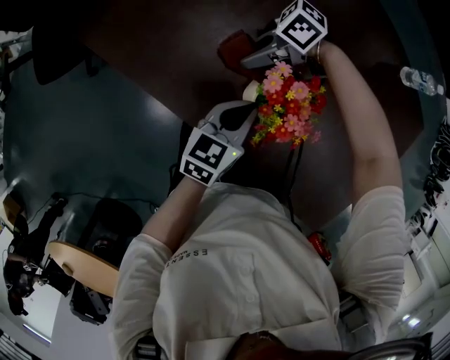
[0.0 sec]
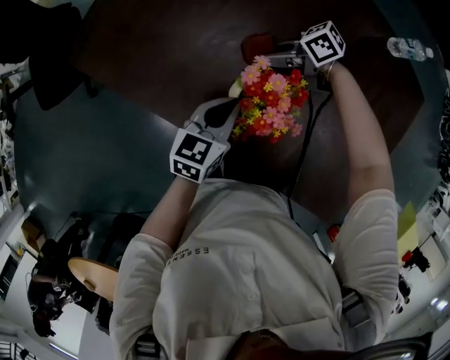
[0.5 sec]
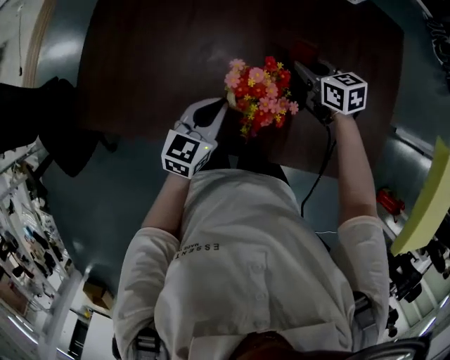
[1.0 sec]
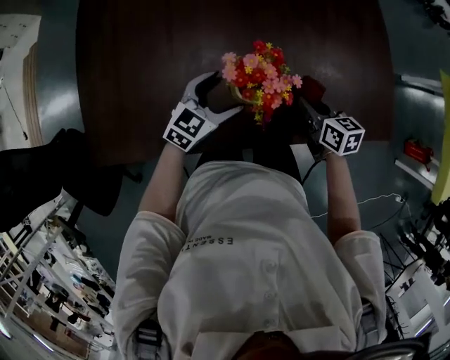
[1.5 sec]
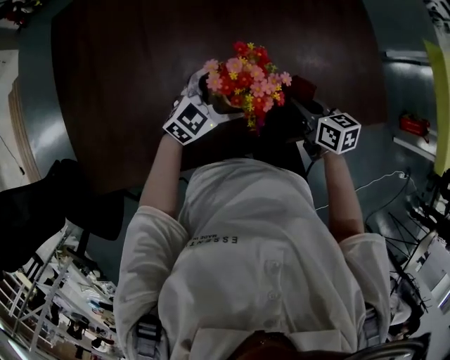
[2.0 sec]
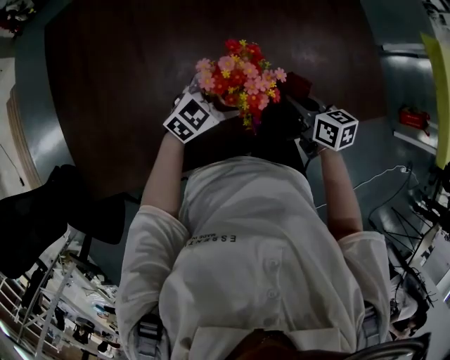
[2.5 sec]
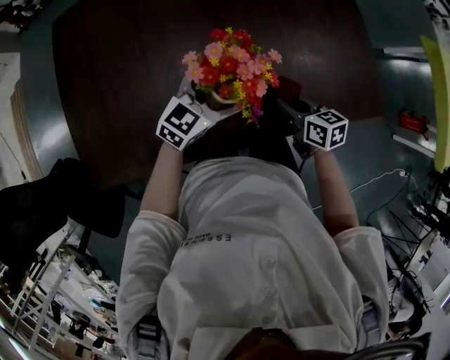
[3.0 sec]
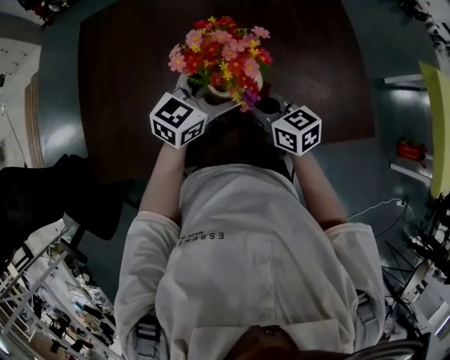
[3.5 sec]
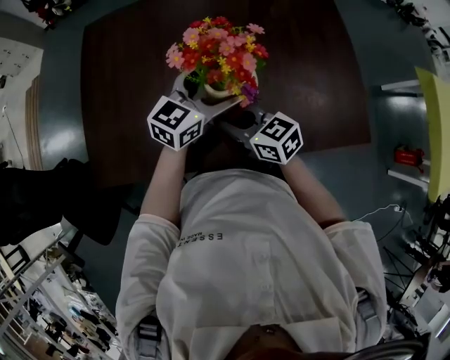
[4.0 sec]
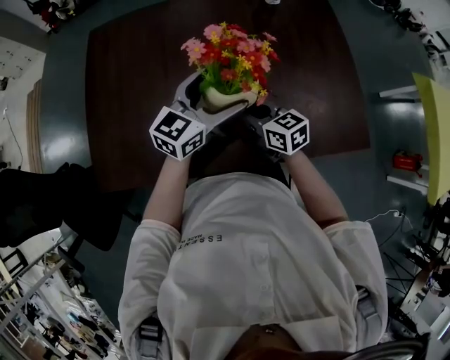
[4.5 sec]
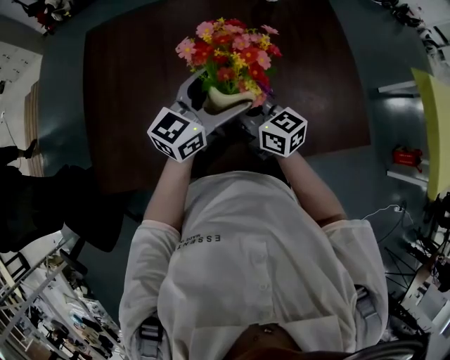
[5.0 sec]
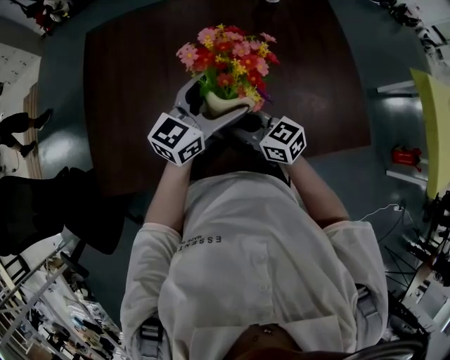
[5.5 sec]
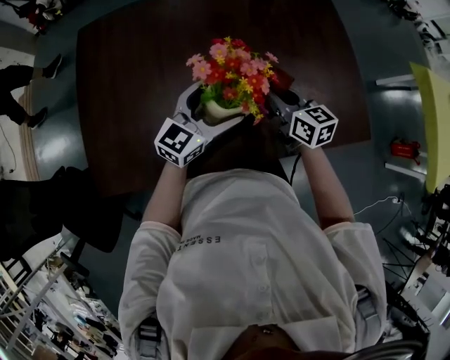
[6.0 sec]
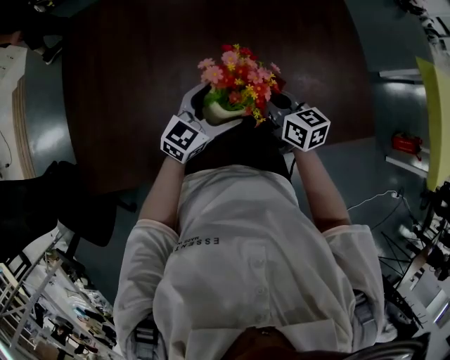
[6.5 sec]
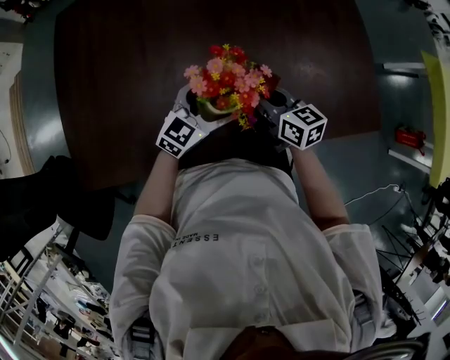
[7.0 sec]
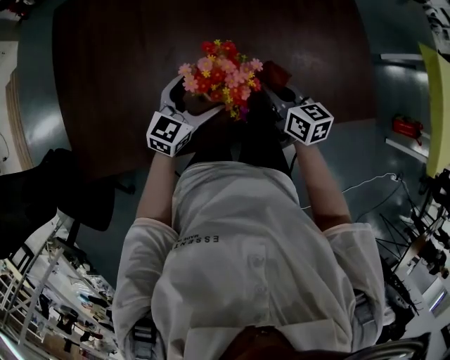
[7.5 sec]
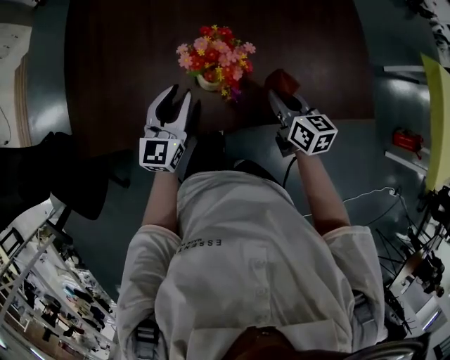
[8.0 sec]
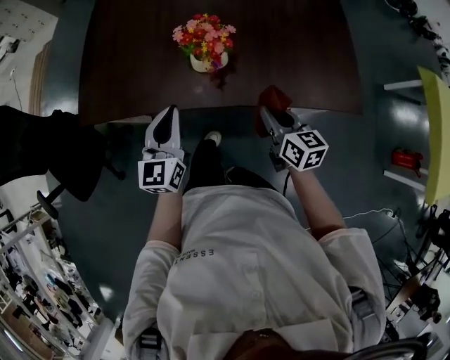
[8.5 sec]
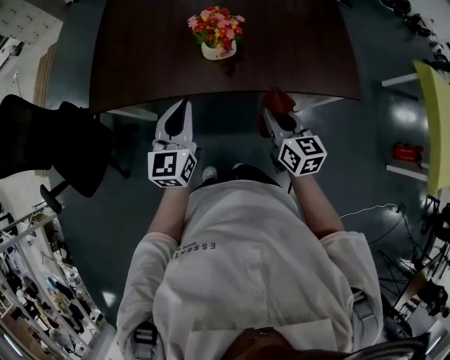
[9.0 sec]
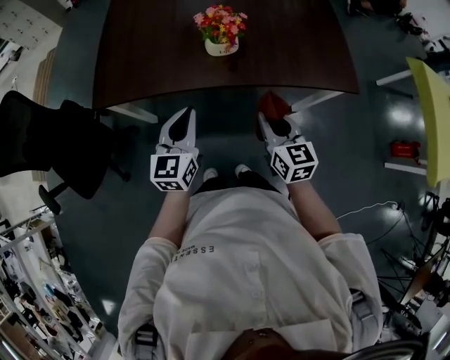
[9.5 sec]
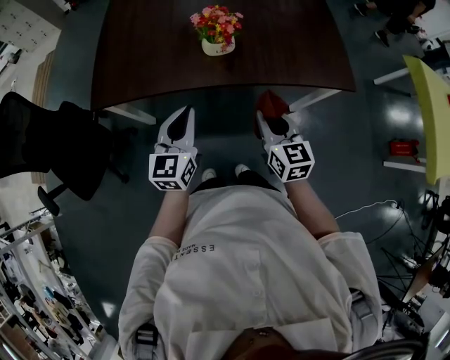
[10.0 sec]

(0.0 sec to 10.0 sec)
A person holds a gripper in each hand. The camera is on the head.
0.0 sec - 2.0 sec: The right gripper changes place by about 25 cm, and rotates roughly 120 degrees; the left gripper changes place by approximately 5 cm, rotates approximately 80 degrees, and opens up.
2.0 sec - 4.0 sec: The left gripper is displaced upward by some 20 cm, and rotates some 30 degrees. Meanwhile the right gripper ends up some 20 cm from where it was, and swivels about 40 degrees.
4.0 sec - 6.0 sec: The left gripper shifts by roughly 5 cm, while the right gripper swings left and right, roughly 10 cm each way, with 2 reversals, and rotates roughly 30 degrees.
6.0 sec - 8.0 sec: The right gripper heads backward, to the right and downward, covering about 15 cm. Meanwhile the left gripper moves backward, to the left and downward, some 10 cm, changes its angle by roughly 30 degrees, and closes.
8.0 sec - 10.0 sec: Both grippers travel together backward, roughly 25 cm. The right gripper rotates roughly 20 degrees.

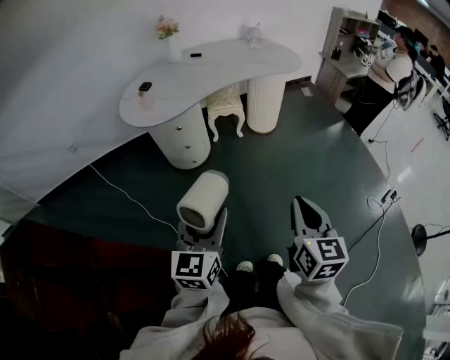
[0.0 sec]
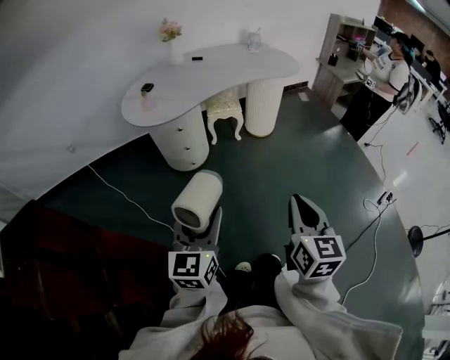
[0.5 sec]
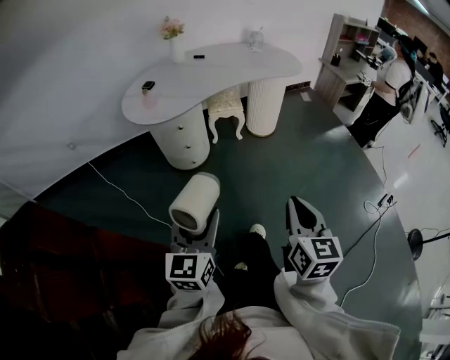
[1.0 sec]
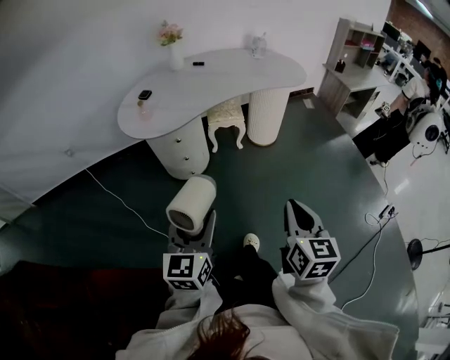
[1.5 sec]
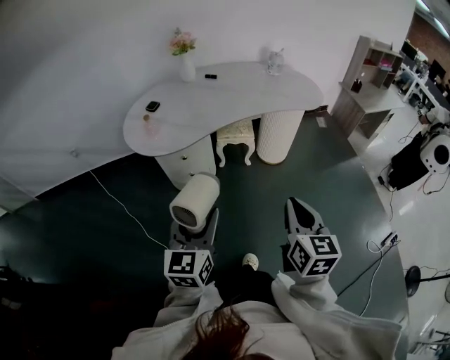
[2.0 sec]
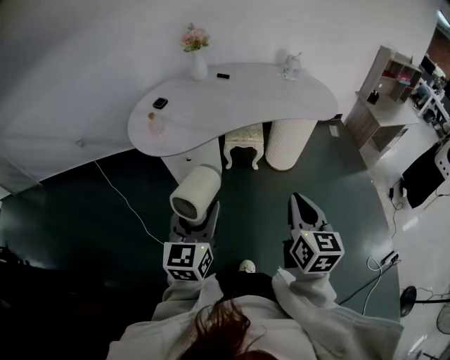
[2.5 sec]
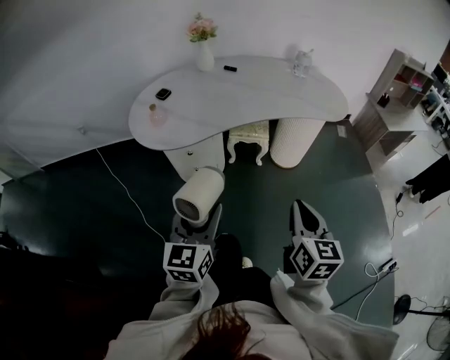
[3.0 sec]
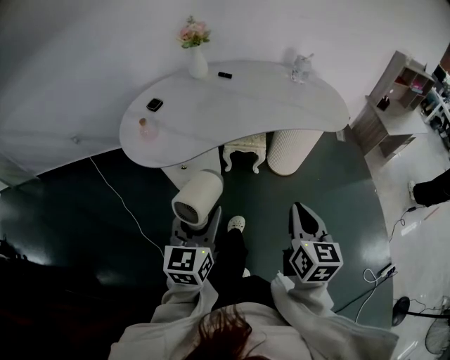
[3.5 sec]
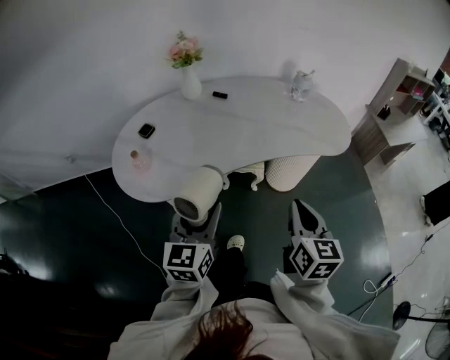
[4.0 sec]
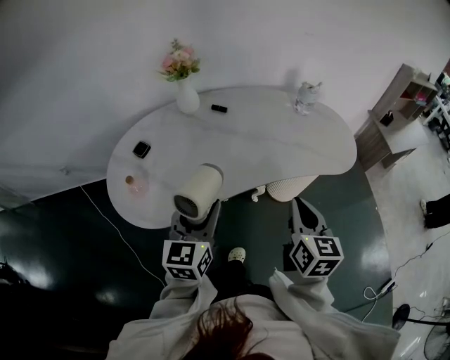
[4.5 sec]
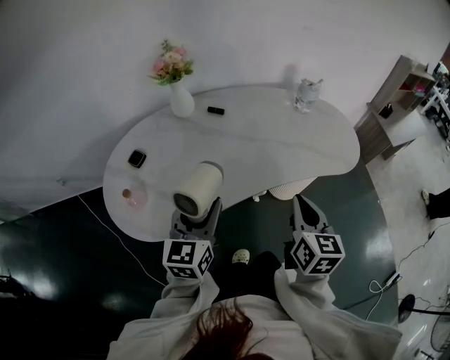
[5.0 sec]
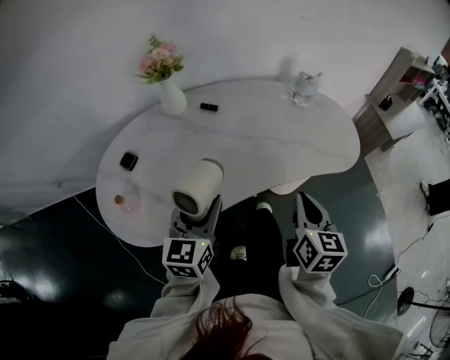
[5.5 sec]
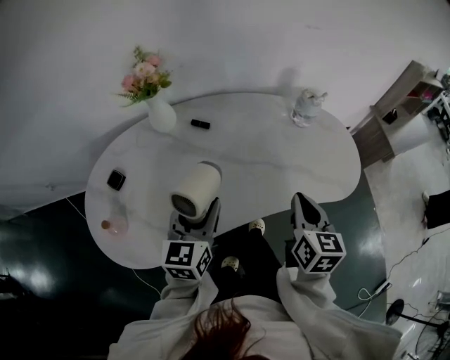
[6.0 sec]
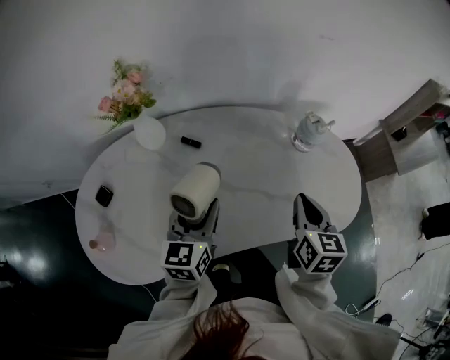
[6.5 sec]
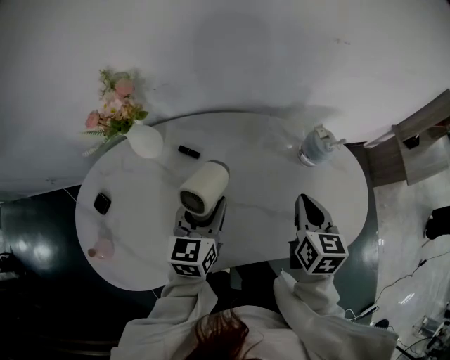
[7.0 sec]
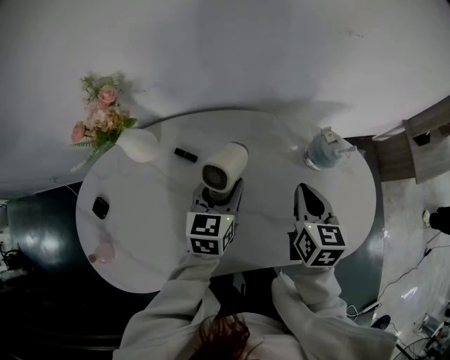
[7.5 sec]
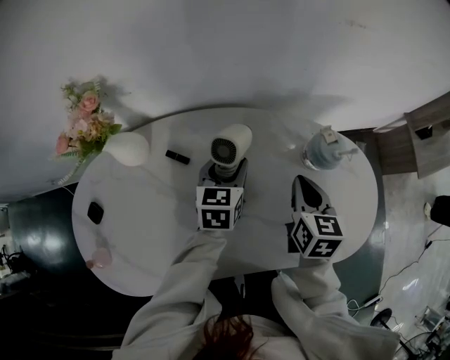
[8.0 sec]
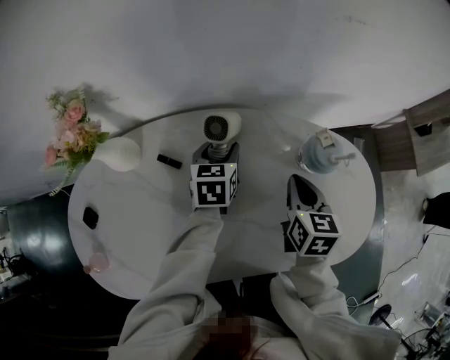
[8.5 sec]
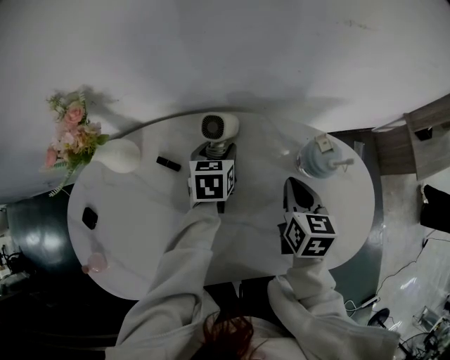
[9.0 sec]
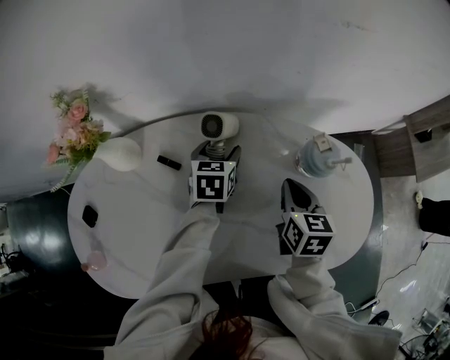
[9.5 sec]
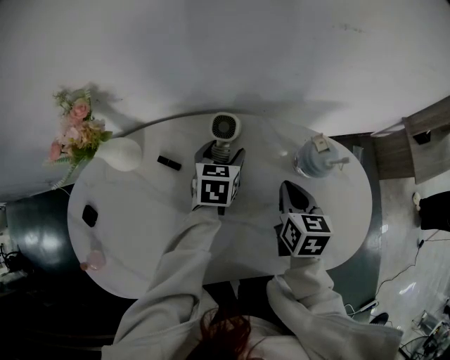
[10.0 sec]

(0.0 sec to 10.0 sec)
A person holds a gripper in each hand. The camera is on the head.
0.0 sec - 2.0 sec: Both grippers travel together forward, some 20 cm.
2.0 sec - 4.0 sec: Both grippers travel together forward, roughly 30 cm.
4.0 sec - 6.0 sec: The two grippers go approximately 25 cm forward.
6.0 sec - 8.0 sec: The two grippers go approximately 30 cm forward.
8.0 sec - 10.0 sec: The left gripper travels forward by approximately 5 cm.

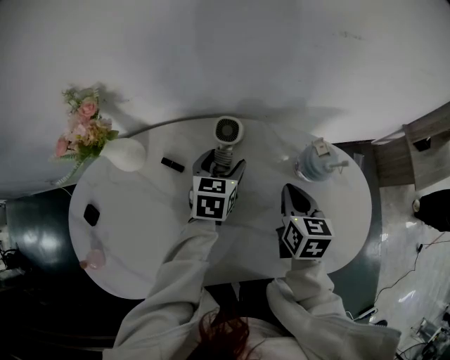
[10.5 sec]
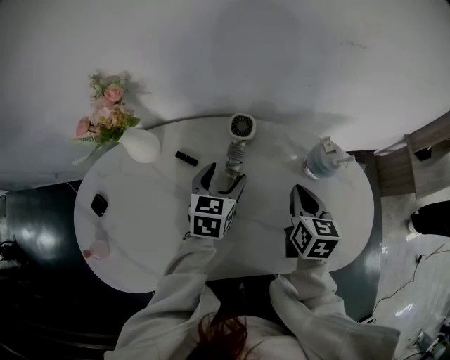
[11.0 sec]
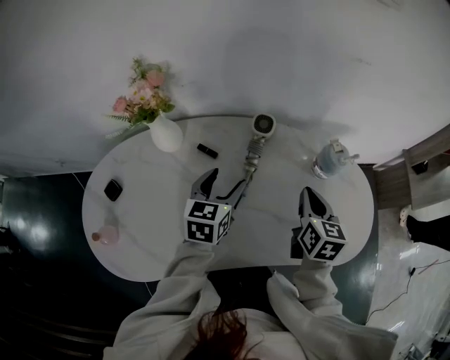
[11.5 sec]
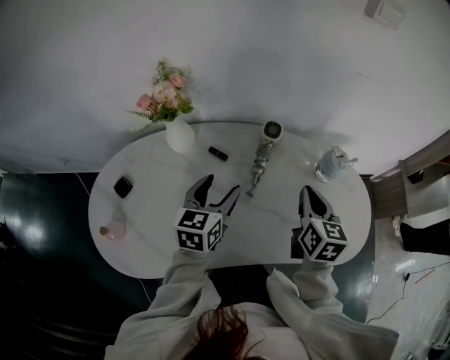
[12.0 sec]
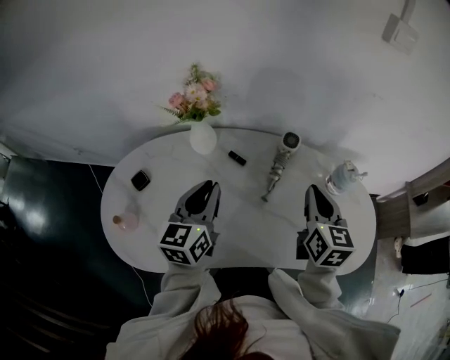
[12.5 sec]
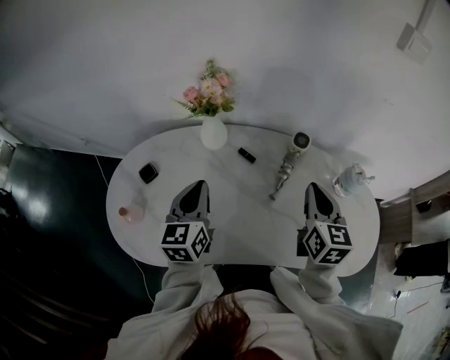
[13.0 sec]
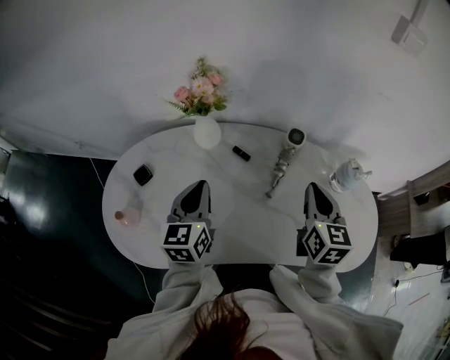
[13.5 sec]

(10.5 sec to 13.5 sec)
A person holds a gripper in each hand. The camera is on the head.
10.5 sec - 12.0 sec: The left gripper travels backward, upward and to the left by roughly 25 cm. Meanwhile the right gripper shifts roughly 15 cm upward, backward and to the left.
12.0 sec - 13.5 sec: The left gripper heads to the left, covering roughly 10 cm, rotates some 20 degrees, and closes. The right gripper goes about 5 cm to the left.

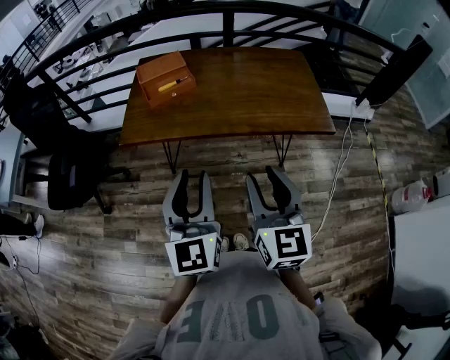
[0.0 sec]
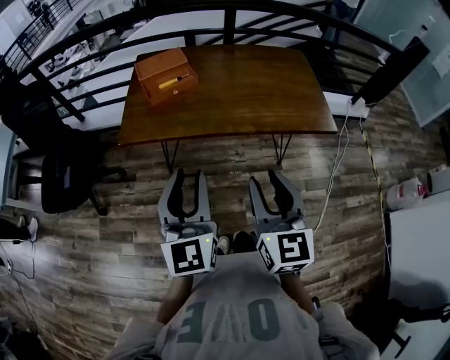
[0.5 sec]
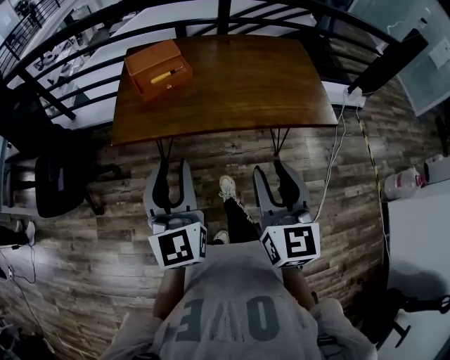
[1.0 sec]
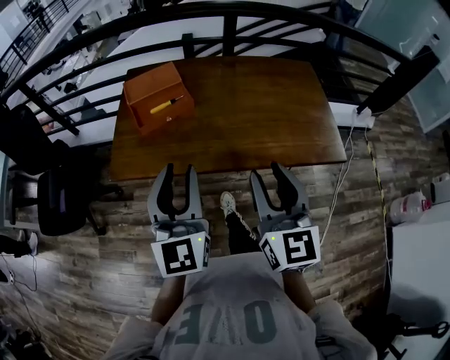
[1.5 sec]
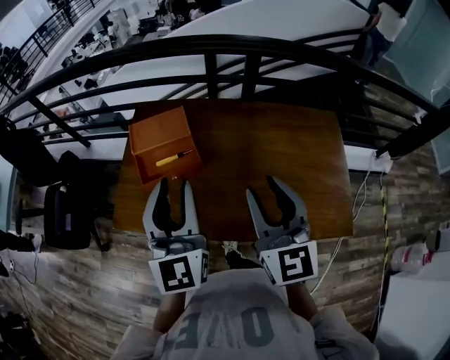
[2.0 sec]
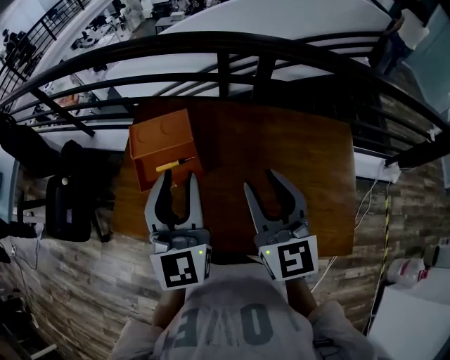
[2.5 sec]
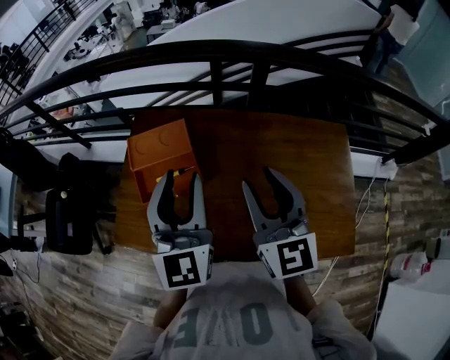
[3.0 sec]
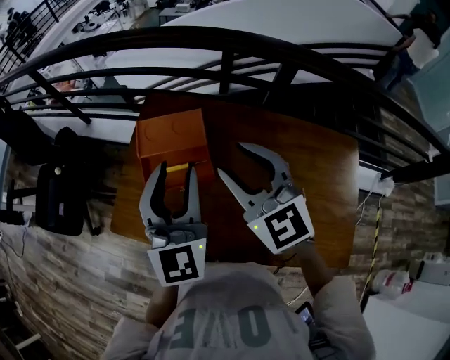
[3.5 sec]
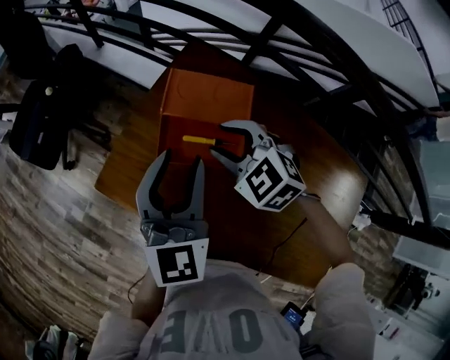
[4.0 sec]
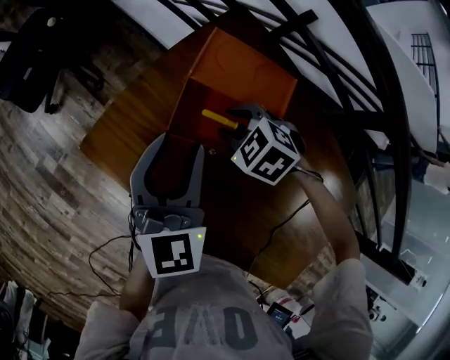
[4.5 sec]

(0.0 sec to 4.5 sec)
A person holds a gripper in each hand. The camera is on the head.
0.0 sec - 2.0 sec: The two grippers go about 35 cm forward.
2.0 sec - 4.5 sec: The right gripper moves some 40 cm, and tips its fingers downward by about 70 degrees; the left gripper shifts by some 25 cm, and turns by roughly 30 degrees.
